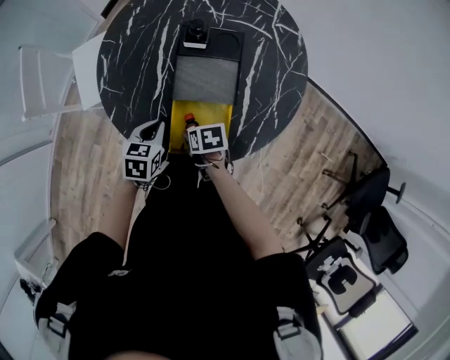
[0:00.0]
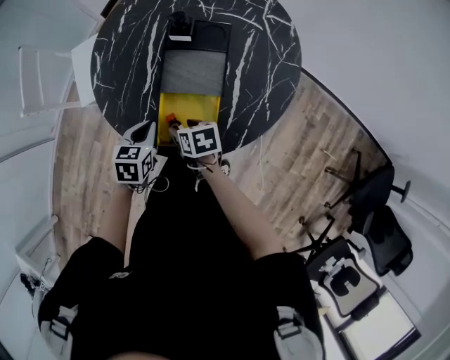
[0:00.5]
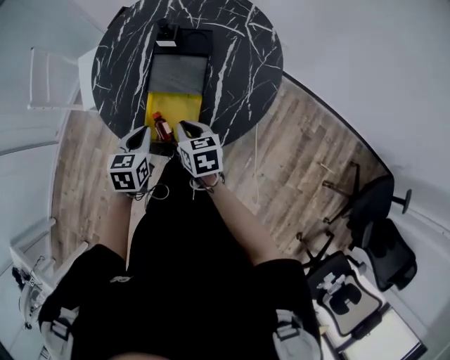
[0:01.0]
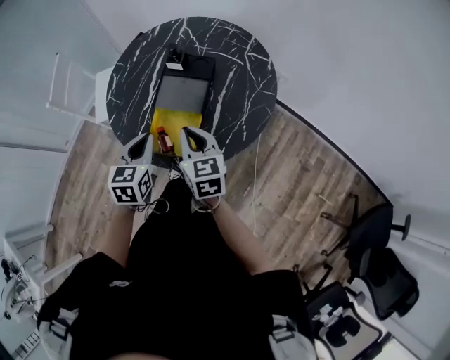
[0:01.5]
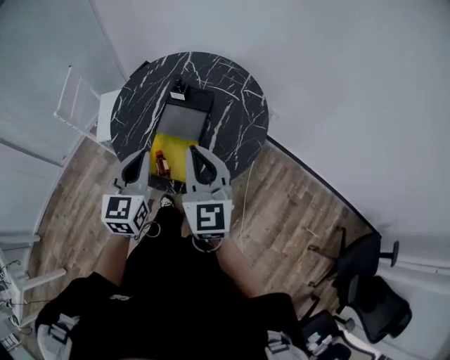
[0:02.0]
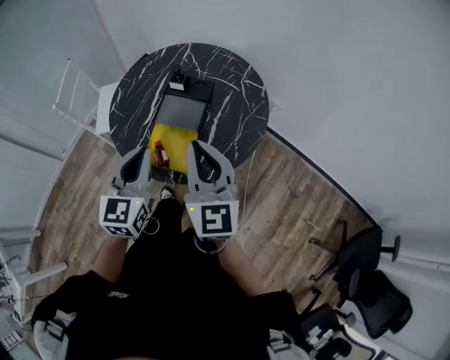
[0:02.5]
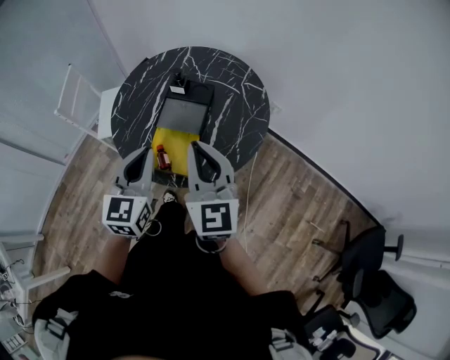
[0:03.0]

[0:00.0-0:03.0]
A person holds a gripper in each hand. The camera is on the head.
0:00.0 to 0:01.5: The right gripper heads upward, covering about 25 cm, angles its fingers upward, by some 40 degrees, and closes; the left gripper heads upward, backward and to the right, covering approximately 20 cm, and turns by approximately 30 degrees.
0:01.5 to 0:03.0: Both grippers move upward, roughly 15 cm. The right gripper rotates about 30 degrees; the left gripper swivels about 20 degrees.

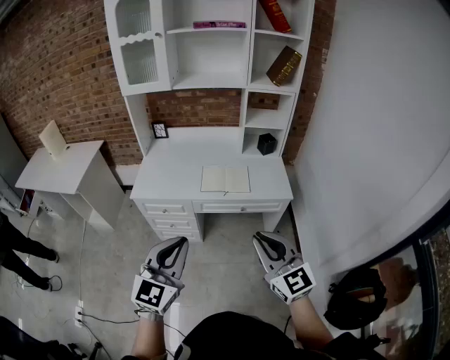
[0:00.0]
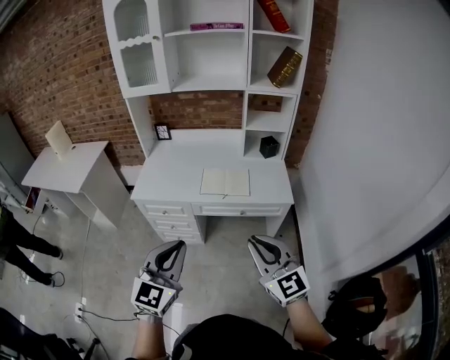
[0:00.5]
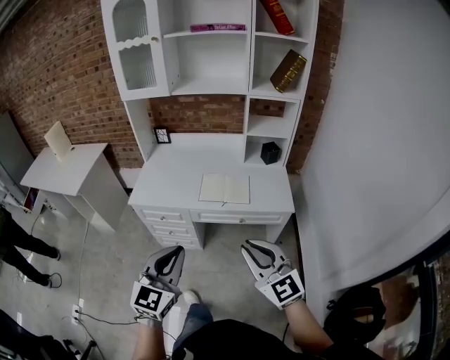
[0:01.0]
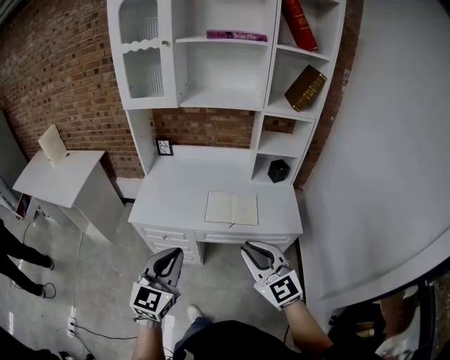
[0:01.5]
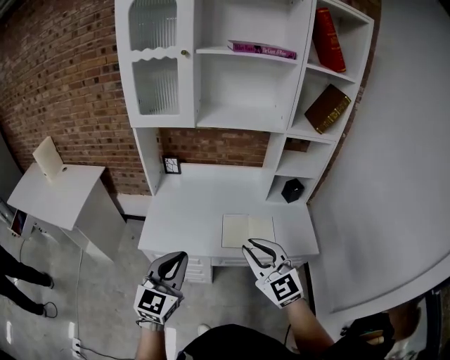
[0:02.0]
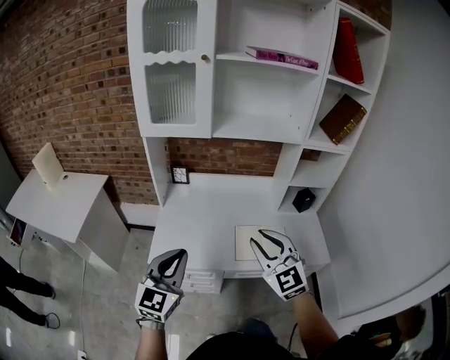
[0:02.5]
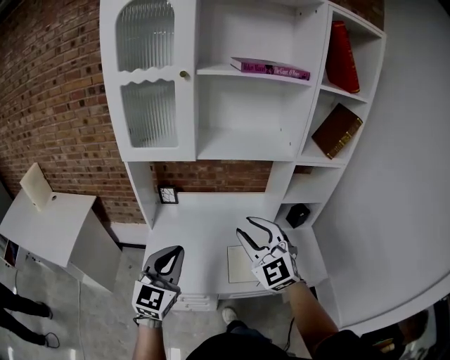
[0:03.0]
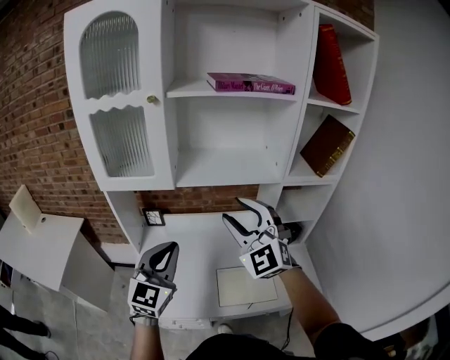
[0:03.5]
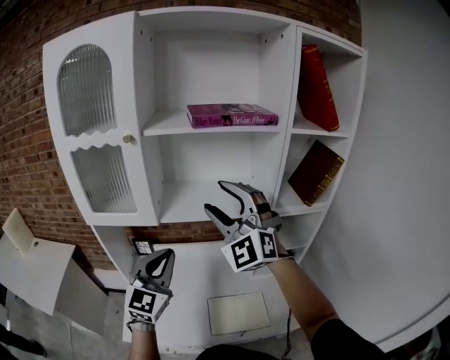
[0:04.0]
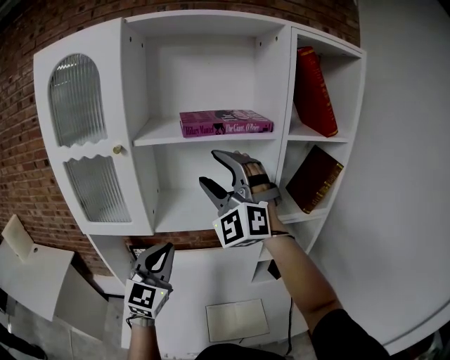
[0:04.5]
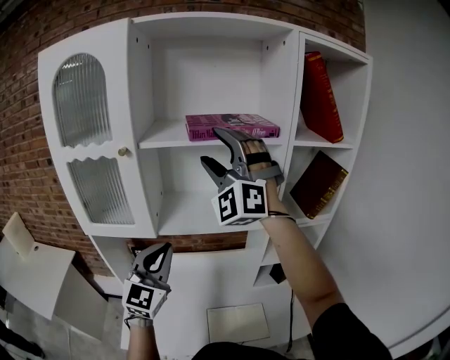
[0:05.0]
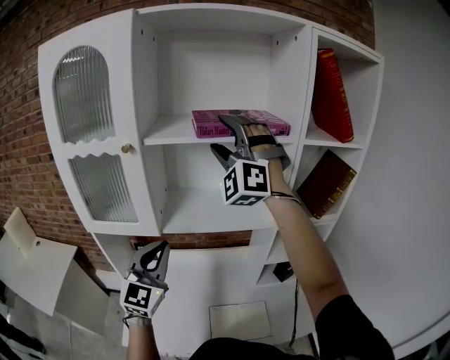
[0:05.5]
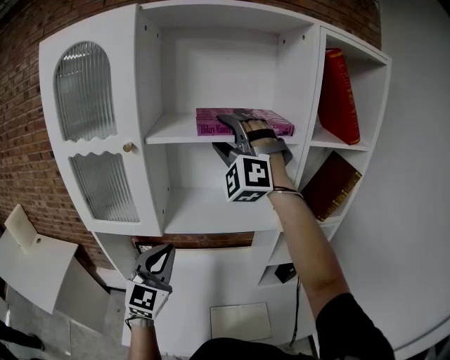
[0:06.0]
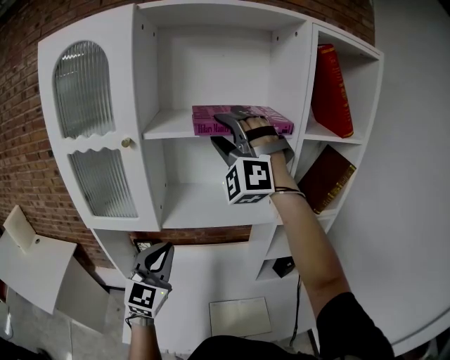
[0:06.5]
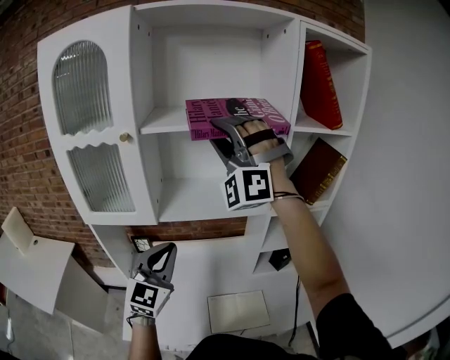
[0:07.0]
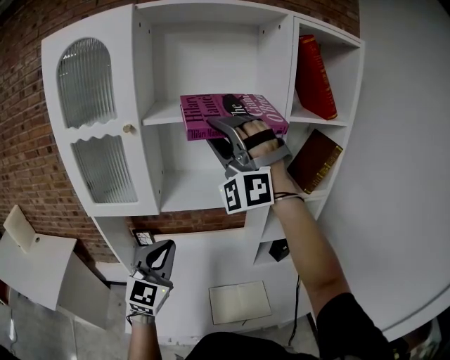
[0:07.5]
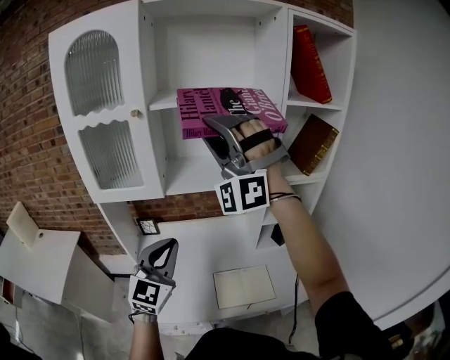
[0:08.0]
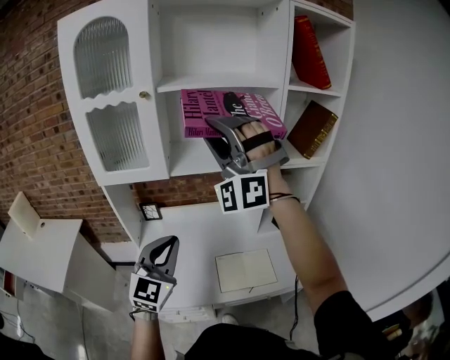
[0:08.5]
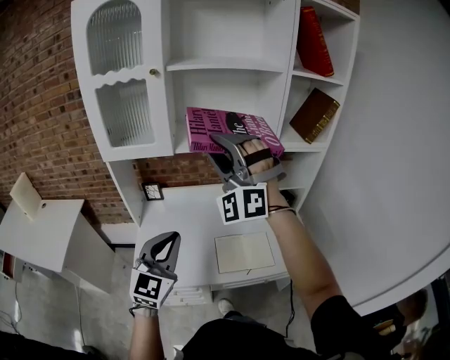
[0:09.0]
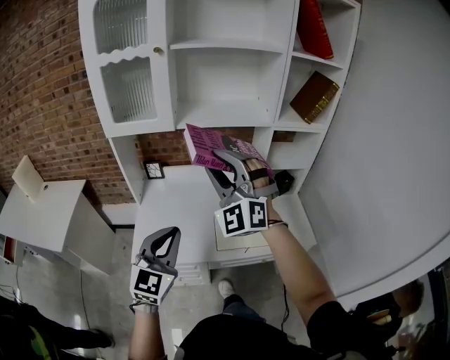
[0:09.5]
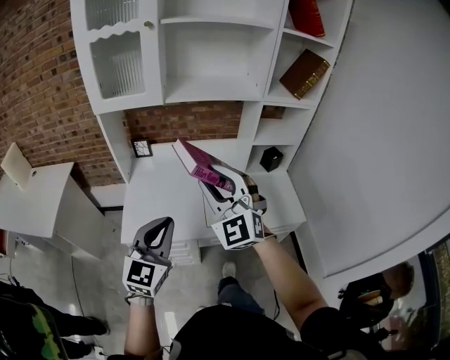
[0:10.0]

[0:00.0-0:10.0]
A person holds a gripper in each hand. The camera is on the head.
0:00.0 to 0:02.0: The right gripper goes roughly 30 cm forward and to the left. Meanwhile the left gripper goes some 30 cm forward.
0:02.0 to 0:04.0: The right gripper moves forward and upward, roughly 50 cm, rotates around the line of its fingers by roughly 40 degrees, counterclockwise from behind, and opens up, while the left gripper heads forward, covering about 35 cm.
0:04.0 to 0:06.0: The right gripper heads forward and upward, covering some 20 cm, and swivels some 30 degrees. Meanwhile the left gripper moves forward, roughly 5 cm.
0:06.0 to 0:08.0: Both grippers move backward, roughly 15 cm. The right gripper closes up.
0:08.0 to 0:10.0: The right gripper moves downward and backward, about 35 cm, and rolls clockwise, seen from behind, by about 50 degrees; the left gripper is displaced backward and downward by approximately 25 cm.

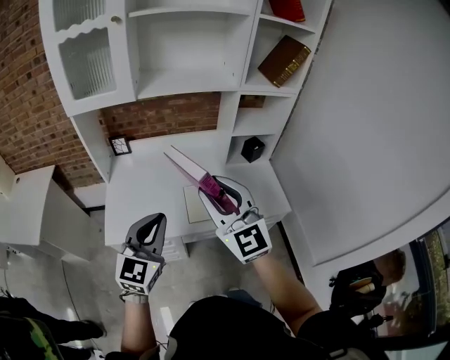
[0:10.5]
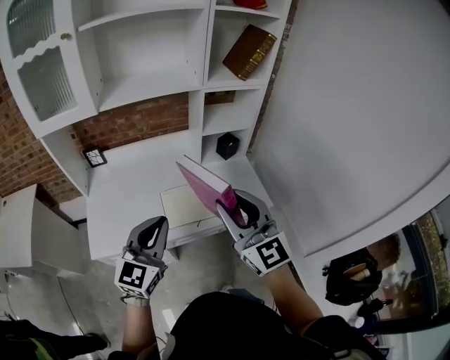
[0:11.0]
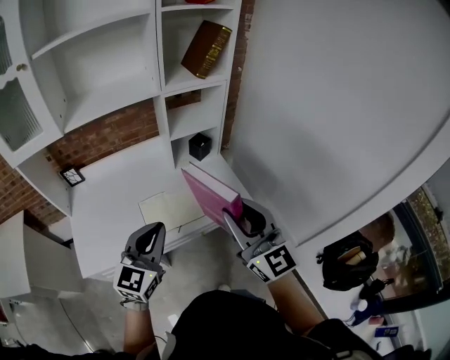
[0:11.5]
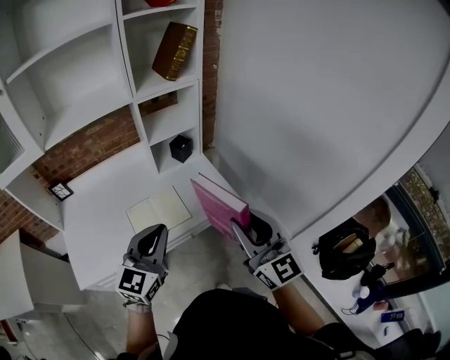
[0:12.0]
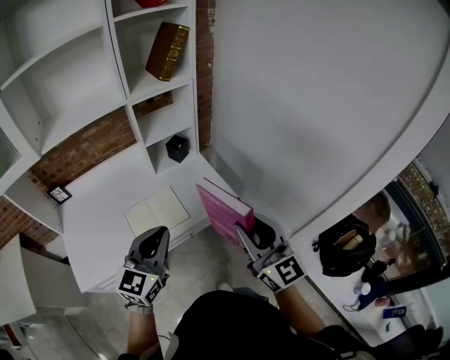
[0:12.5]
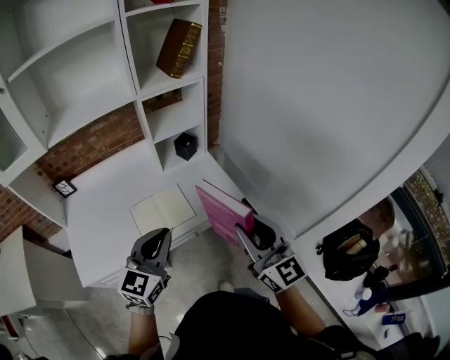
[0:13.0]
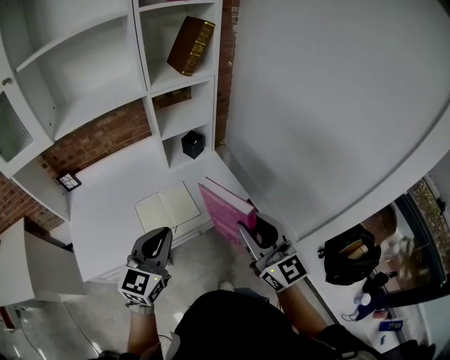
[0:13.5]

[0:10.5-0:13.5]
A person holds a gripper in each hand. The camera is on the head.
0:10.5 to 0:12.0: The two grippers go some 25 cm to the right. The right gripper changes its angle by roughly 30 degrees, while the left gripper swivels approximately 20 degrees.
0:12.0 to 0:13.5: The grippers move only a little.

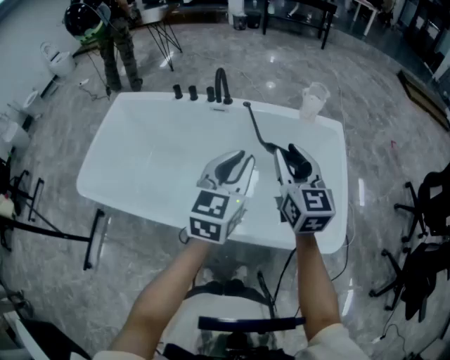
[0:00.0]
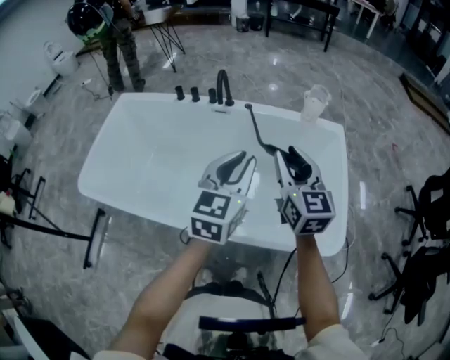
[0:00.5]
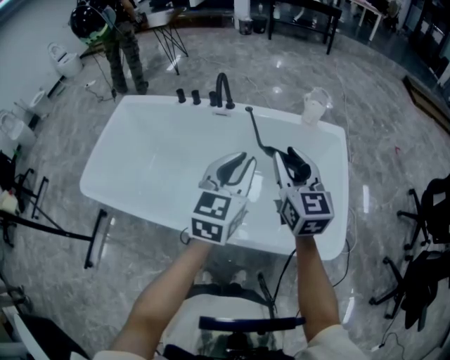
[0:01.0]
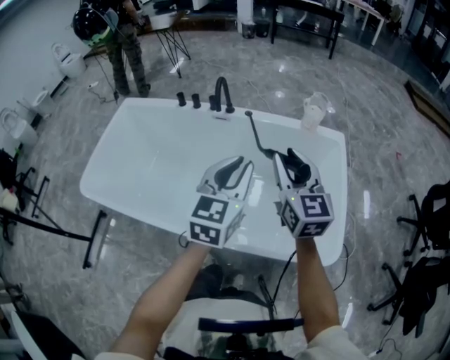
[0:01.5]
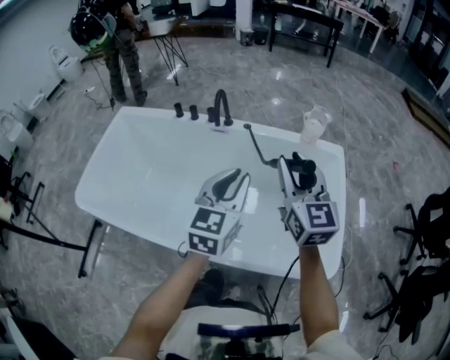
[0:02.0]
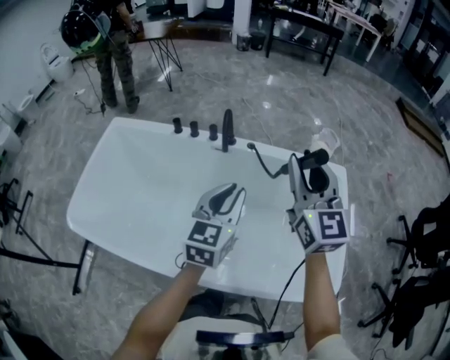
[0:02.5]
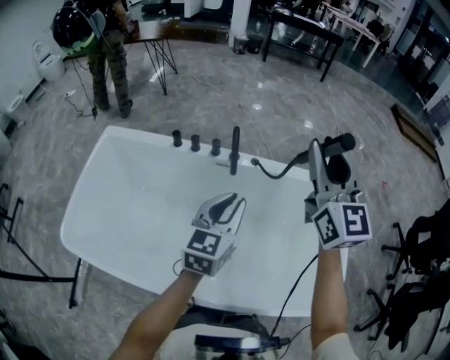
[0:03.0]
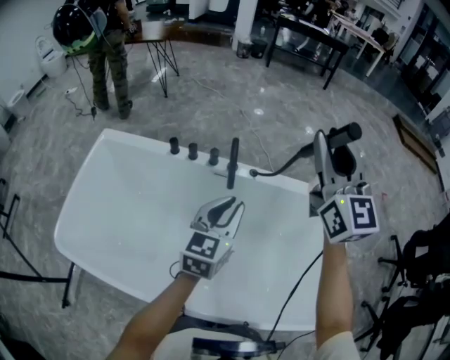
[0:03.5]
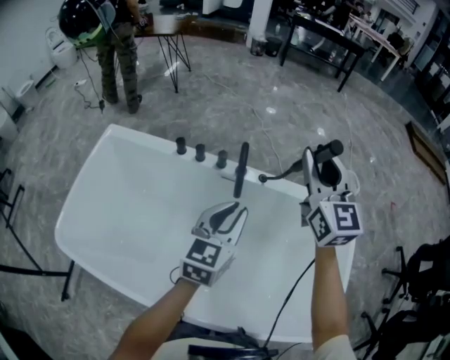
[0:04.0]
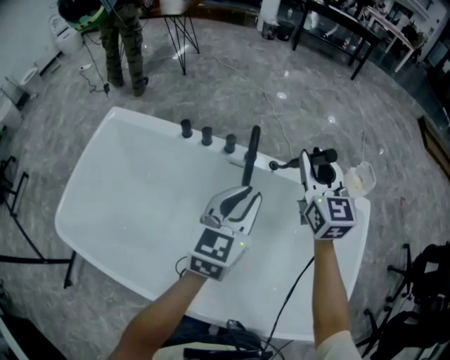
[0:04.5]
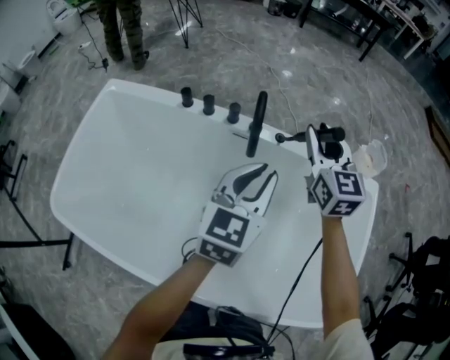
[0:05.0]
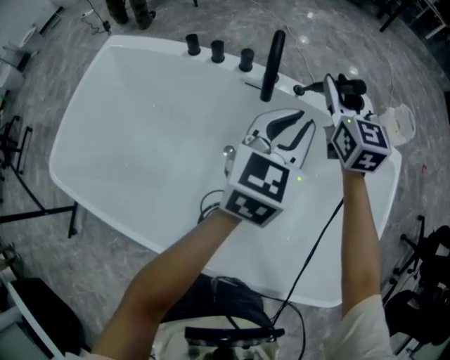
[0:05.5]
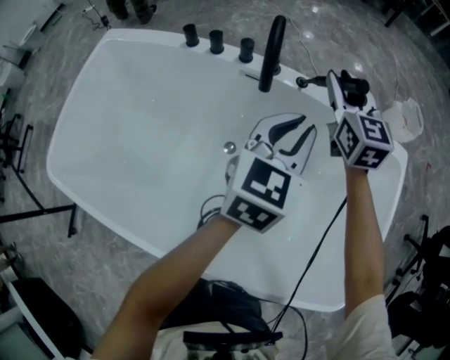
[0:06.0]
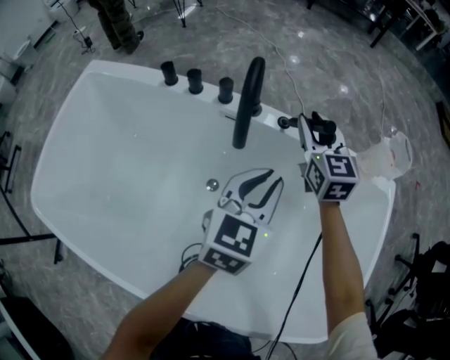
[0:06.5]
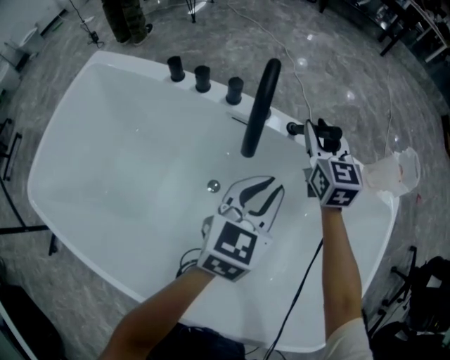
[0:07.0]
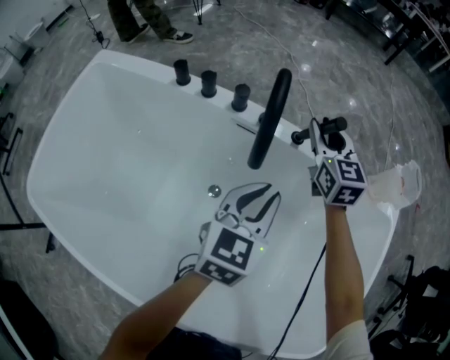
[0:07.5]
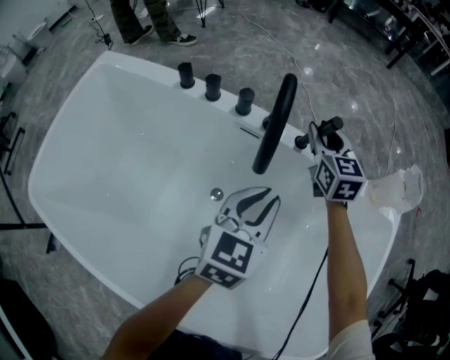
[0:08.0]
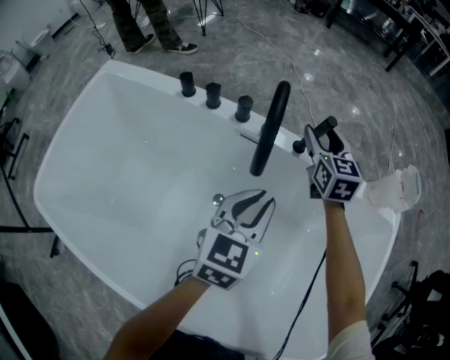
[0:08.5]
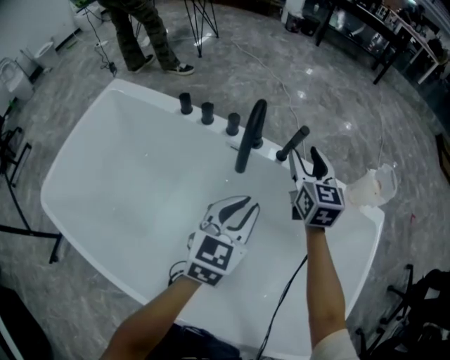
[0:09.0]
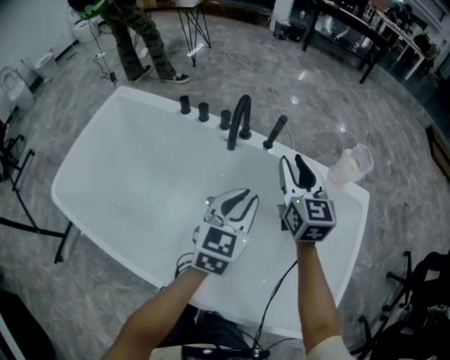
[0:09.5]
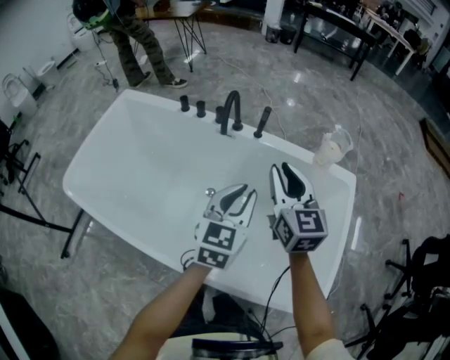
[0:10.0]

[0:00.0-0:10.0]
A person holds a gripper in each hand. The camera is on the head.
0:00.0 to 0:02.0: The right gripper moves forward, roughly 5 cm.
0:02.0 to 0:04.0: Both grippers move forward and to the left, about 30 cm.
0:04.0 to 0:06.0: The left gripper travels downward and to the right by some 15 cm; the right gripper shifts roughly 25 cm downward.
0:06.0 to 0:08.0: The left gripper is displaced downward by approximately 10 cm; the right gripper moves downward and forward, about 15 cm.
0:08.0 to 0:10.0: The left gripper goes roughly 30 cm backward and upward. The right gripper goes approximately 40 cm backward and upward, and opens and closes again.
